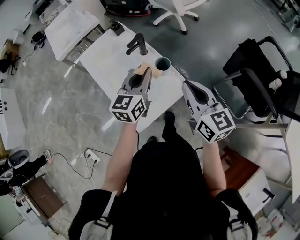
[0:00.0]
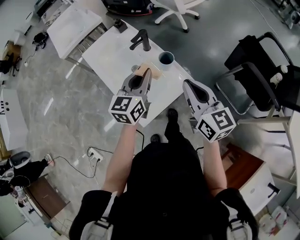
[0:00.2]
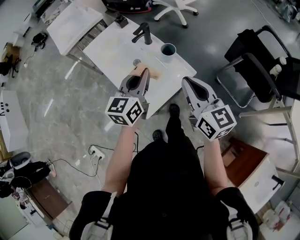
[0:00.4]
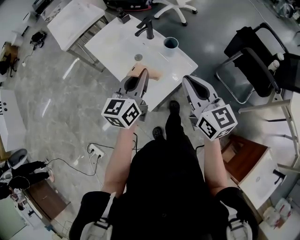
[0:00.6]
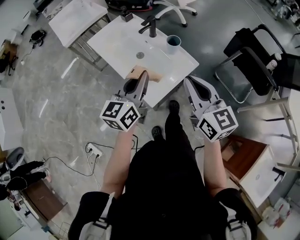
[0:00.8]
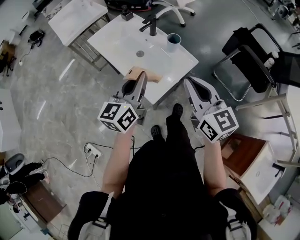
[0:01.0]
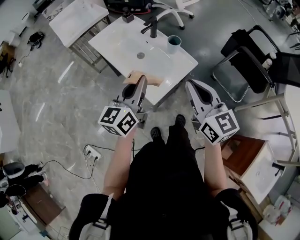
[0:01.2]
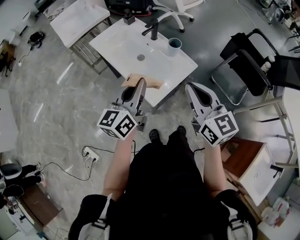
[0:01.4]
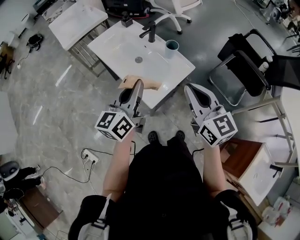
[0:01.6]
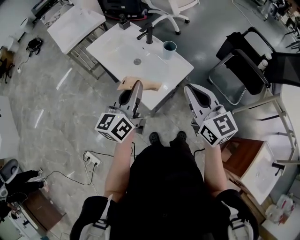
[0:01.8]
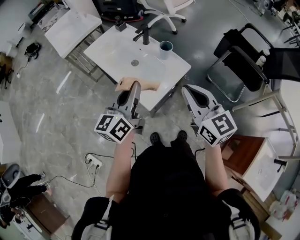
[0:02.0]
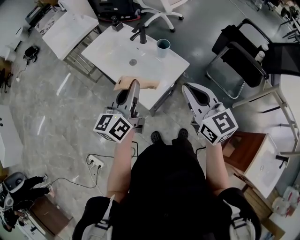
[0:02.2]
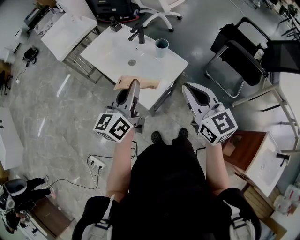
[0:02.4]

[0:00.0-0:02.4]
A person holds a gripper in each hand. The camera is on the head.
0:00.0 to 0:01.2: The two grippers go some 20 cm backward and to the left.
0:01.2 to 0:02.4: There are only small adjustments of the grippers.

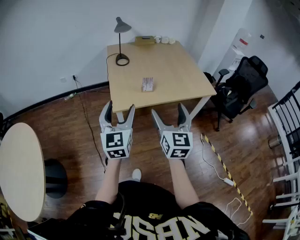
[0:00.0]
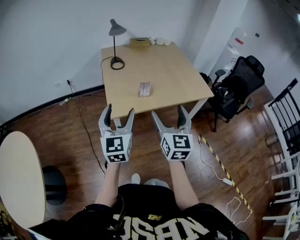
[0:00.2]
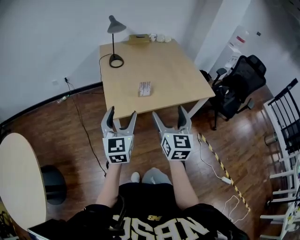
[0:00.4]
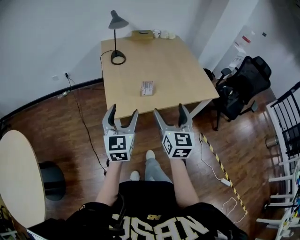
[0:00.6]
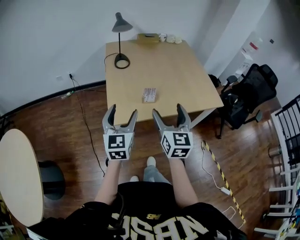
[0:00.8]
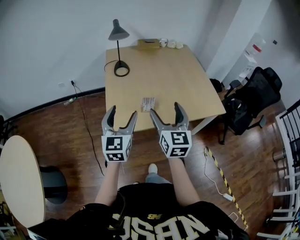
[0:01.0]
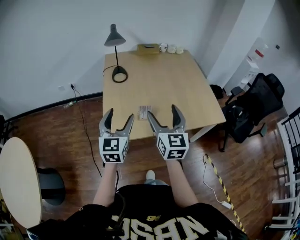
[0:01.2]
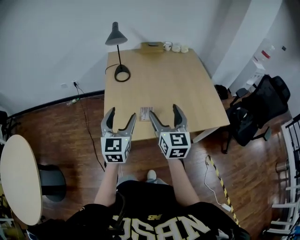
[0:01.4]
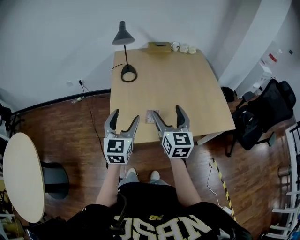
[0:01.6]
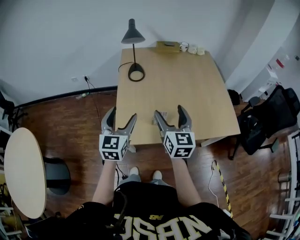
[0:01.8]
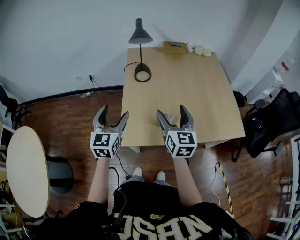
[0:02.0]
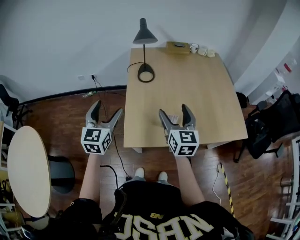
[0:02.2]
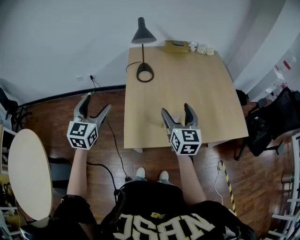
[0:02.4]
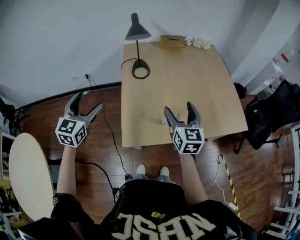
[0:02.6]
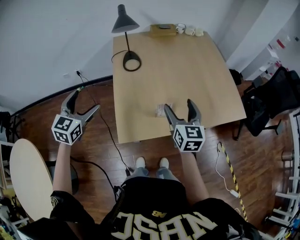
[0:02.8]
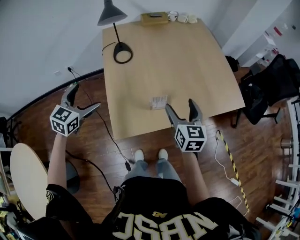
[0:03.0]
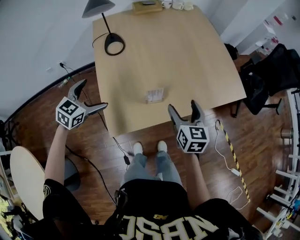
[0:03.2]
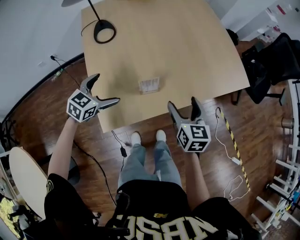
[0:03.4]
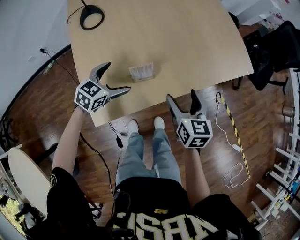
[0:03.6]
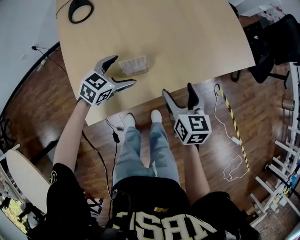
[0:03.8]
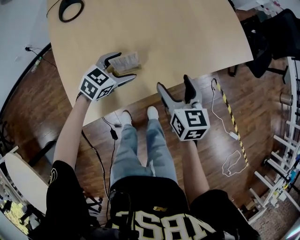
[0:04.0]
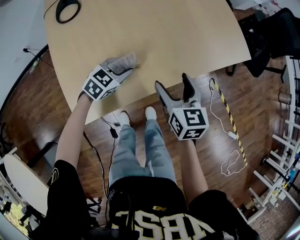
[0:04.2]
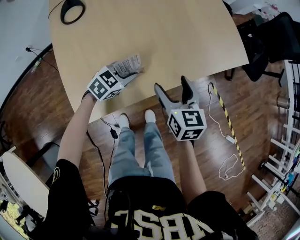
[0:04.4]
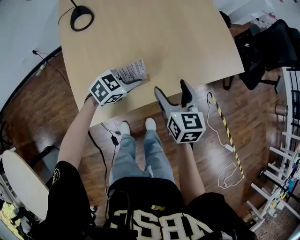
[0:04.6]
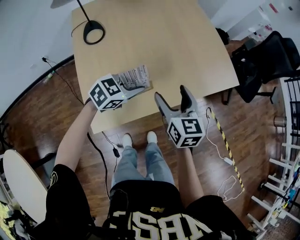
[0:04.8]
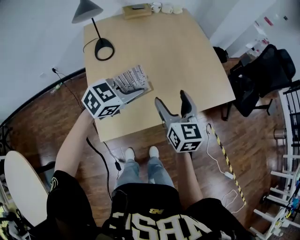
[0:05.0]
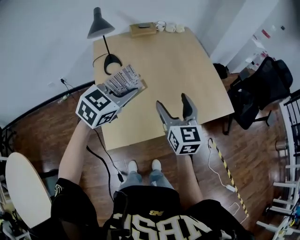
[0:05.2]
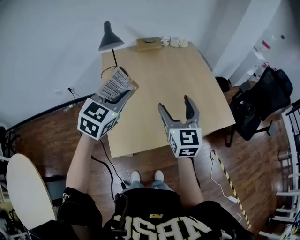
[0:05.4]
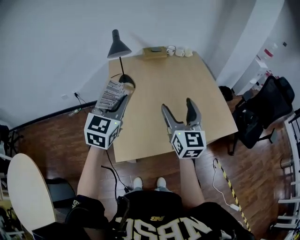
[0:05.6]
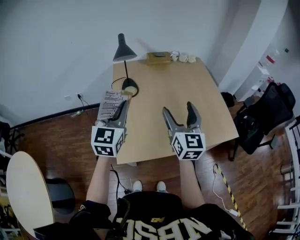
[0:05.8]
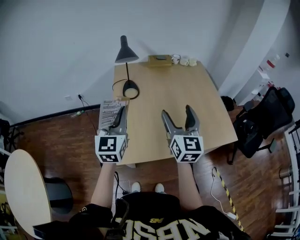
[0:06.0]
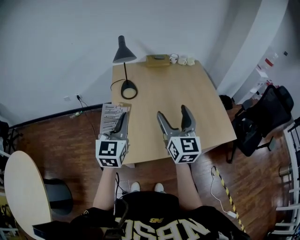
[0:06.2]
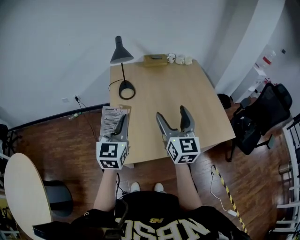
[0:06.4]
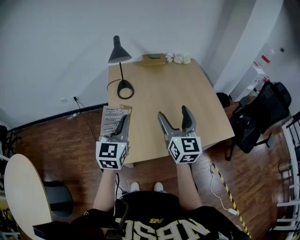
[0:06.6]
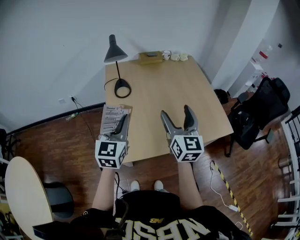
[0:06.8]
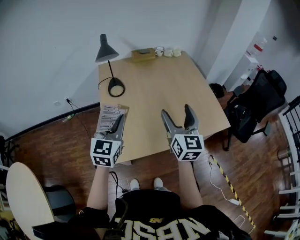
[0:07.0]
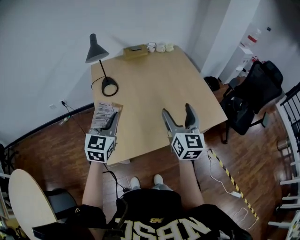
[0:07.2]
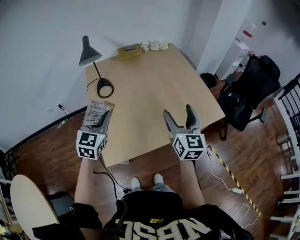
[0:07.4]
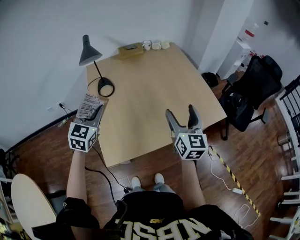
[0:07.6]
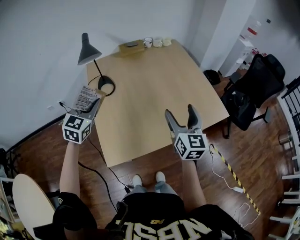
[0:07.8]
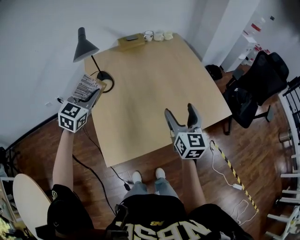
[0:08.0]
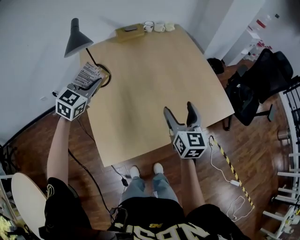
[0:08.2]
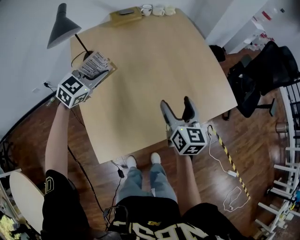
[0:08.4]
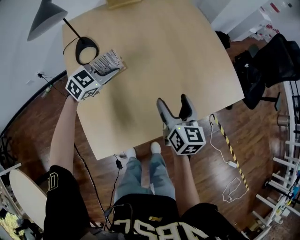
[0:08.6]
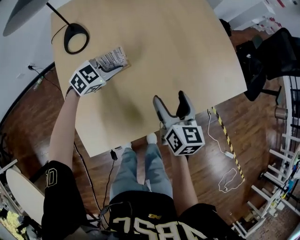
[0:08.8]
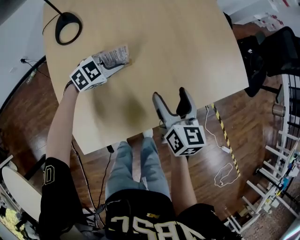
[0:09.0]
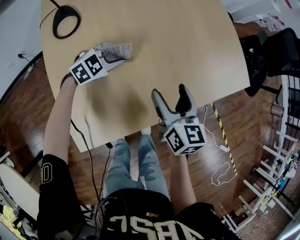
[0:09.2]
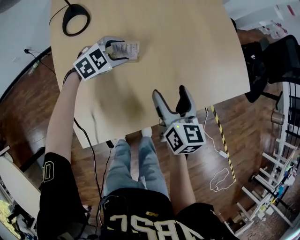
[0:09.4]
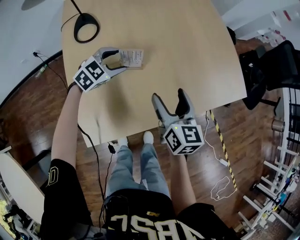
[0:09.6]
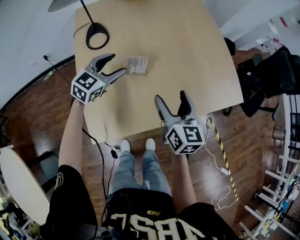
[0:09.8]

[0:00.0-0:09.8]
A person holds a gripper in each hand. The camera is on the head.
0:00.0 to 0:01.4: Both grippers travel together forward, roughly 30 cm.
0:01.4 to 0:02.8: The left gripper goes approximately 25 cm to the left and forward, and changes its angle by roughly 20 degrees, while the right gripper goes approximately 10 cm forward and downward.
0:02.8 to 0:04.2: The left gripper shifts approximately 35 cm downward, changes its angle by approximately 50 degrees, and closes its fingers. The right gripper goes approximately 20 cm downward.
0:04.2 to 0:05.6: The two grippers go about 40 cm upward. The left gripper swivels some 50 degrees. The right gripper tips its fingers upward by about 30 degrees.
0:05.6 to 0:07.0: The left gripper is displaced downward by roughly 5 cm; the right gripper changes place by about 5 cm.
0:07.0 to 0:08.4: The left gripper travels forward and downward by roughly 30 cm, and swivels approximately 40 degrees. Meanwhile the right gripper is displaced downward and forward by about 20 cm.
0:08.4 to 0:09.8: The right gripper travels backward by some 5 cm, while the left gripper heads downward, covering some 10 cm, and opens up.

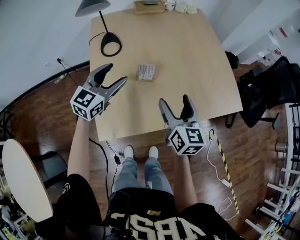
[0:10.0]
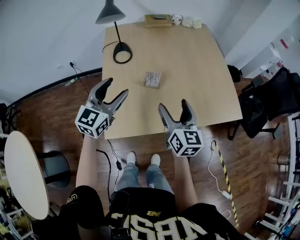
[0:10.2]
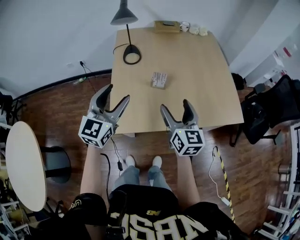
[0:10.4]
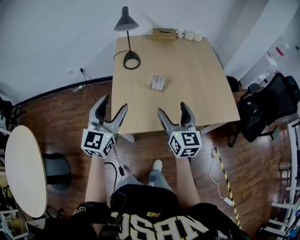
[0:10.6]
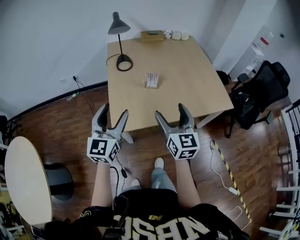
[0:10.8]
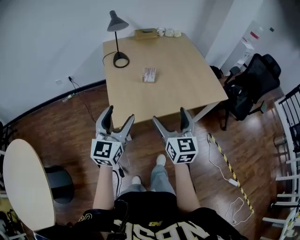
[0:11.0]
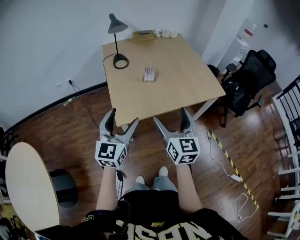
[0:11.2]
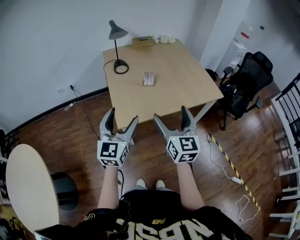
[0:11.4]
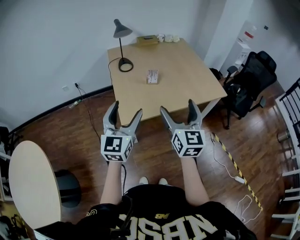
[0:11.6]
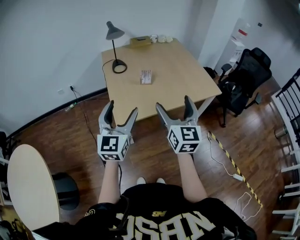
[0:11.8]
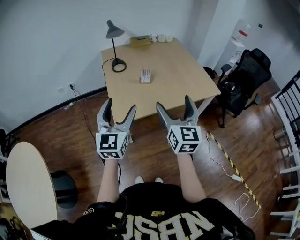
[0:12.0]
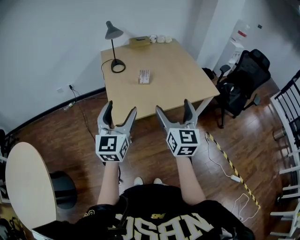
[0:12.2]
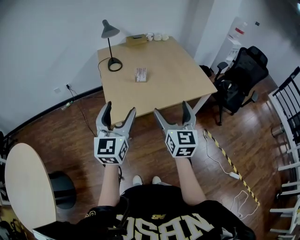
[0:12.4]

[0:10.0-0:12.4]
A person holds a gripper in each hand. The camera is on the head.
0:10.0 to 0:11.2: The two grippers go about 35 cm backward.
0:11.2 to 0:12.4: The left gripper shifts roughly 5 cm upward; the right gripper moves to the right, some 5 cm.

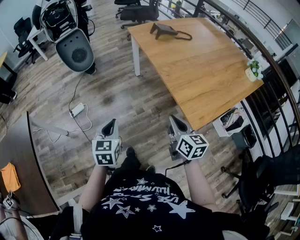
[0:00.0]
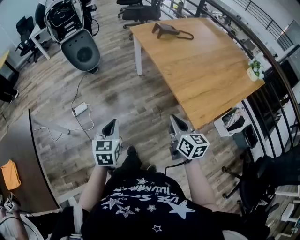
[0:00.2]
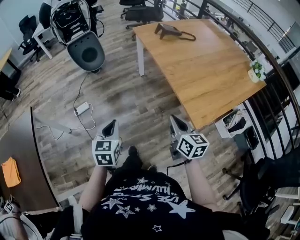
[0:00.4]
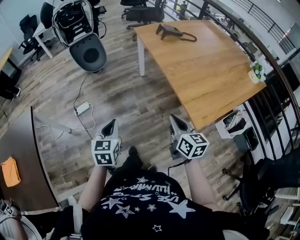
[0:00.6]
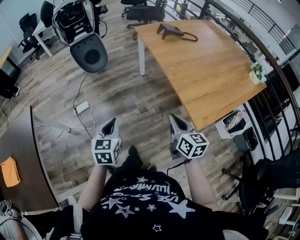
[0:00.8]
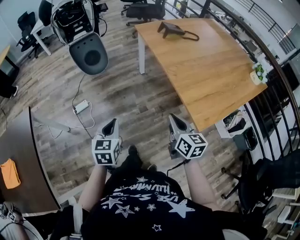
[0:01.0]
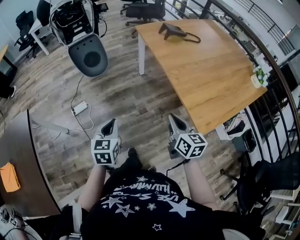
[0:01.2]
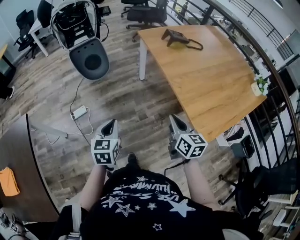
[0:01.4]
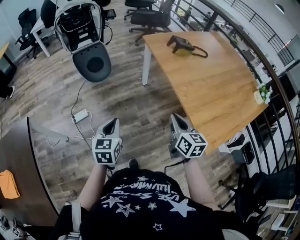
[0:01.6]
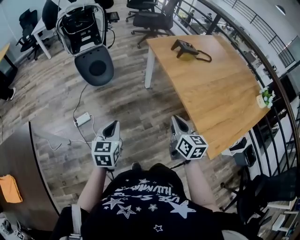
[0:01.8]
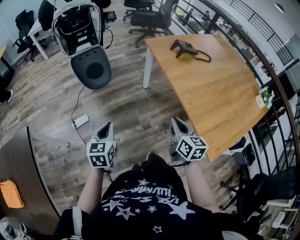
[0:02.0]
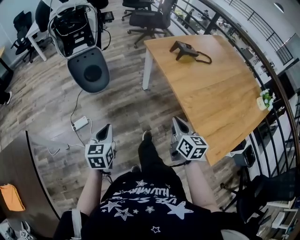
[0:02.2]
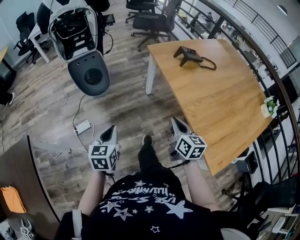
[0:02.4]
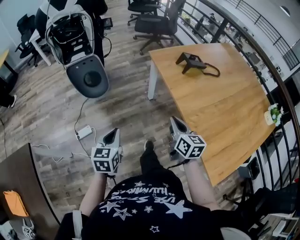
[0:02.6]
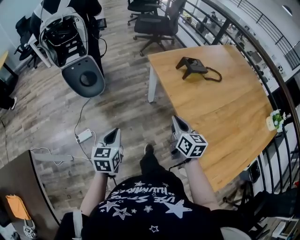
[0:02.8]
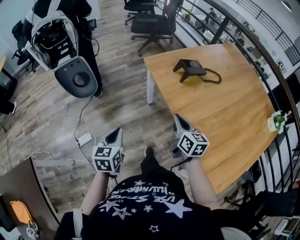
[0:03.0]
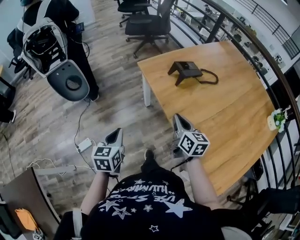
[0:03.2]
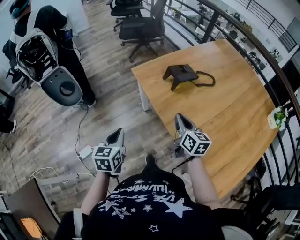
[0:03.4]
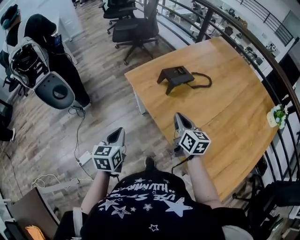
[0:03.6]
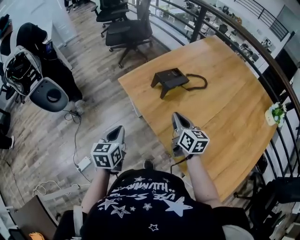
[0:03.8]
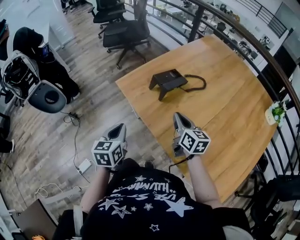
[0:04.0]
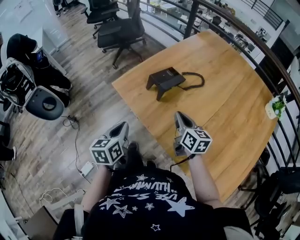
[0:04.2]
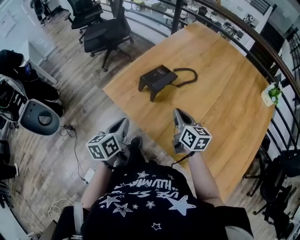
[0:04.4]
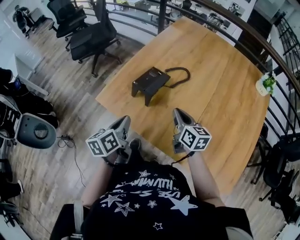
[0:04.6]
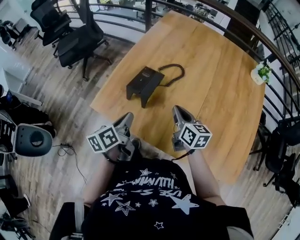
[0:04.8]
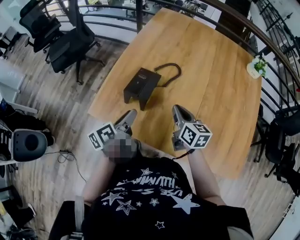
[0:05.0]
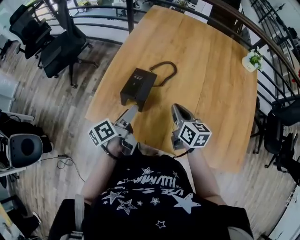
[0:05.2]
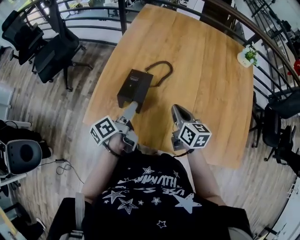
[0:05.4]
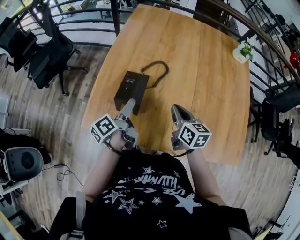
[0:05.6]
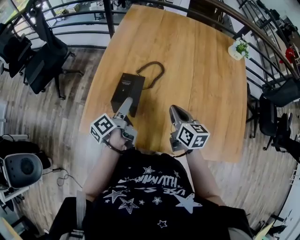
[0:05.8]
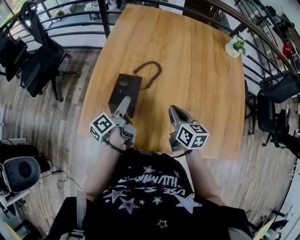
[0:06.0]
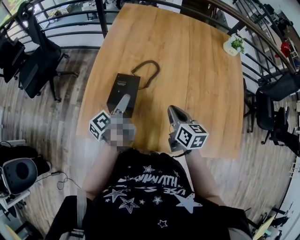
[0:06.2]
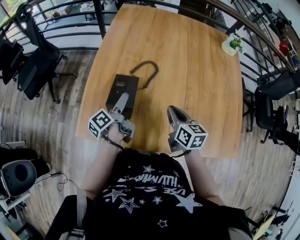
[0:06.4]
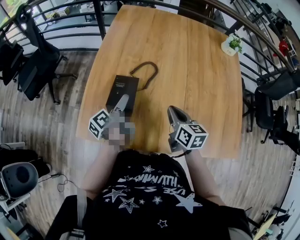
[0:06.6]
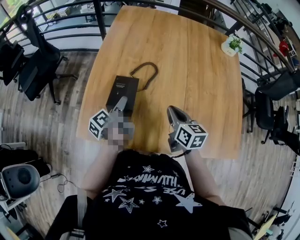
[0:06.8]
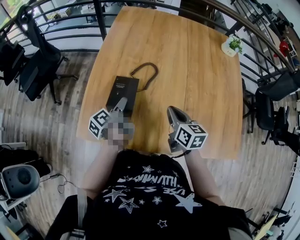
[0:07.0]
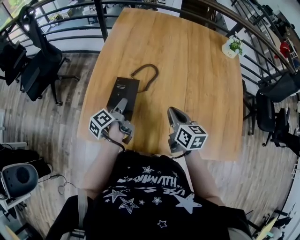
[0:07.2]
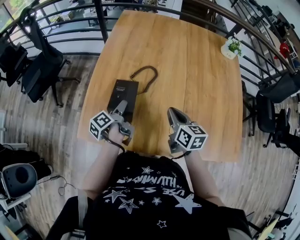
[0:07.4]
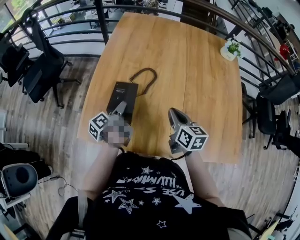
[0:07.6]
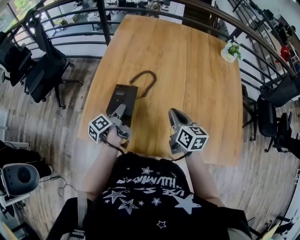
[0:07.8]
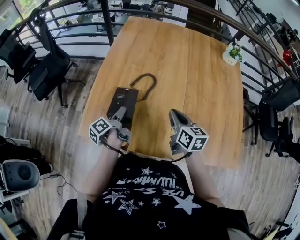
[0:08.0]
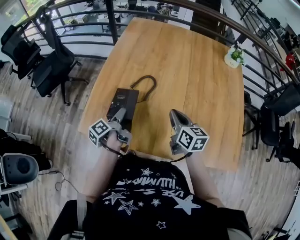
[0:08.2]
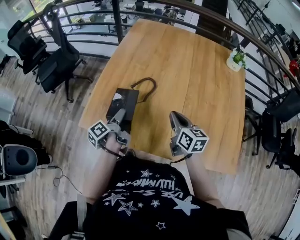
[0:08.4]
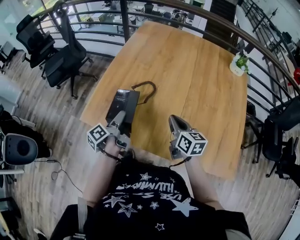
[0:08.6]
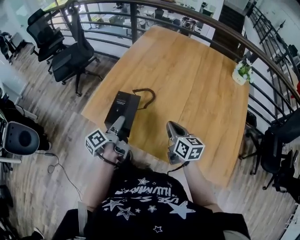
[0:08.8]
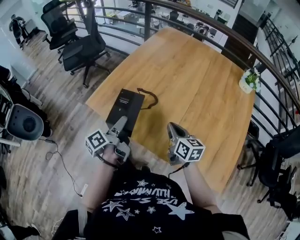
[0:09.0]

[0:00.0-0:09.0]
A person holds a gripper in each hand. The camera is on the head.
0:00.0 to 0:01.6: Both grippers move forward and to the left, some 15 cm.
0:01.6 to 0:03.0: The grippers both shift forward by about 25 cm.
0:03.0 to 0:04.4: Both grippers travel together forward and to the right, roughly 25 cm. The left gripper swivels approximately 30 degrees; the right gripper changes its angle by some 20 degrees.
0:04.4 to 0:06.0: The left gripper changes place by roughly 25 cm, swivels some 50 degrees, and opens. Meanwhile the right gripper moves some 5 cm, and turns by about 30 degrees.
0:06.0 to 0:07.6: The left gripper closes.
0:07.6 to 0:09.0: The right gripper shifts approximately 10 cm backward, and swivels approximately 20 degrees. Meanwhile the left gripper shifts approximately 20 cm backward and upward, and changes its angle by about 20 degrees.
